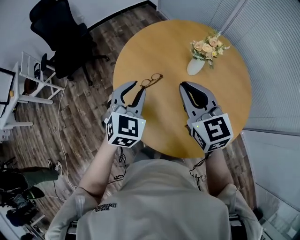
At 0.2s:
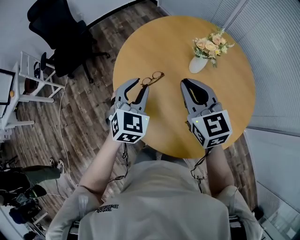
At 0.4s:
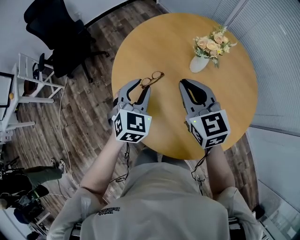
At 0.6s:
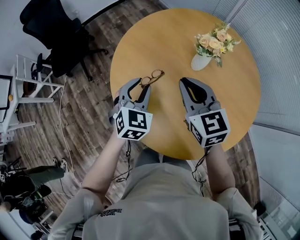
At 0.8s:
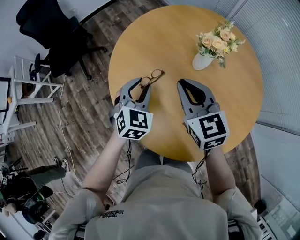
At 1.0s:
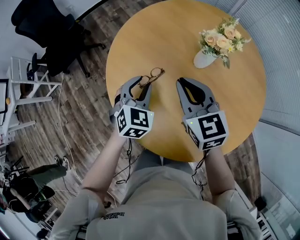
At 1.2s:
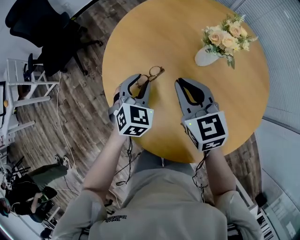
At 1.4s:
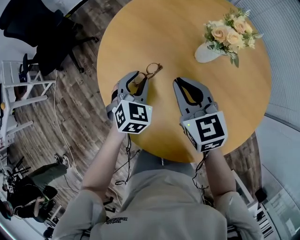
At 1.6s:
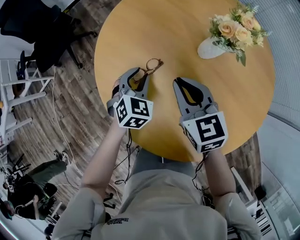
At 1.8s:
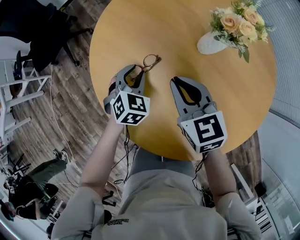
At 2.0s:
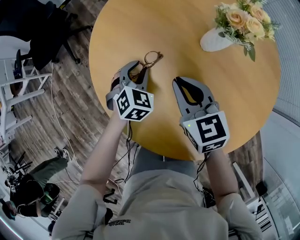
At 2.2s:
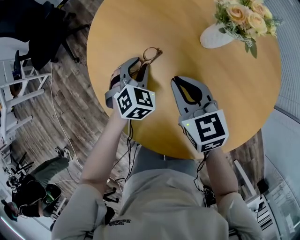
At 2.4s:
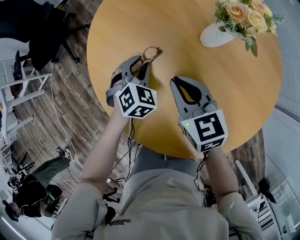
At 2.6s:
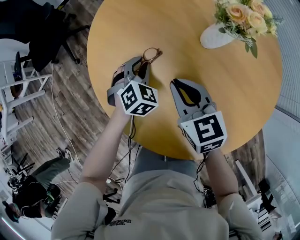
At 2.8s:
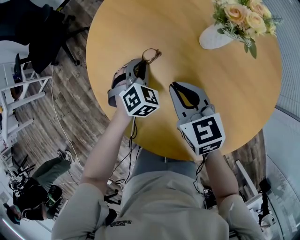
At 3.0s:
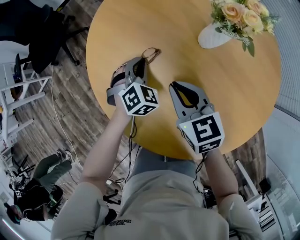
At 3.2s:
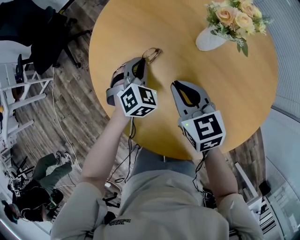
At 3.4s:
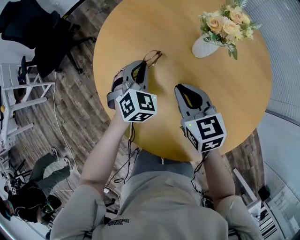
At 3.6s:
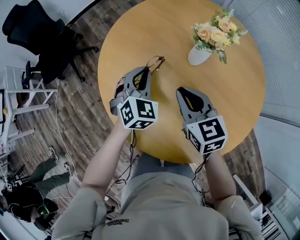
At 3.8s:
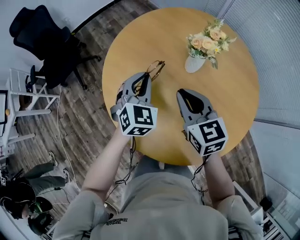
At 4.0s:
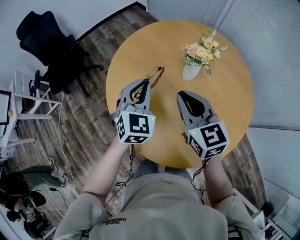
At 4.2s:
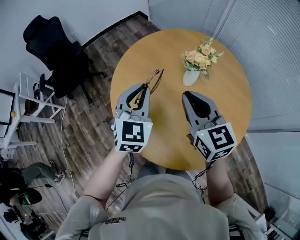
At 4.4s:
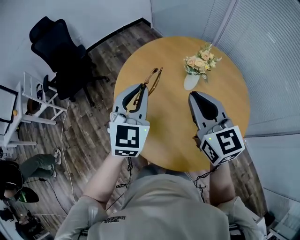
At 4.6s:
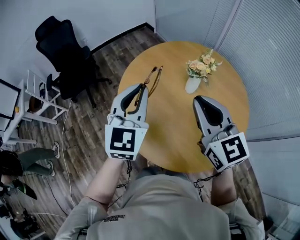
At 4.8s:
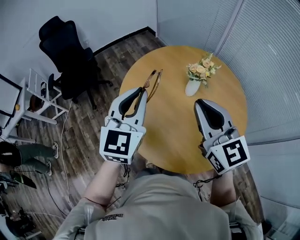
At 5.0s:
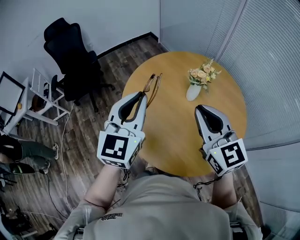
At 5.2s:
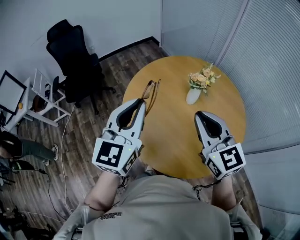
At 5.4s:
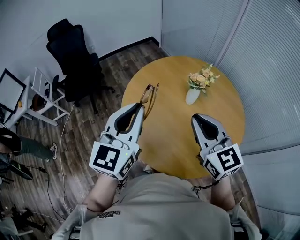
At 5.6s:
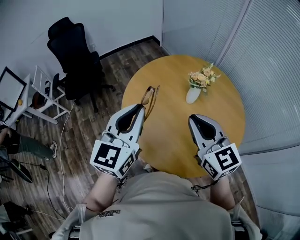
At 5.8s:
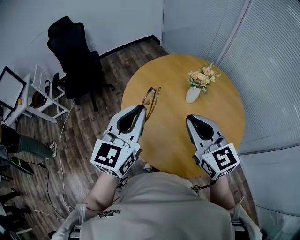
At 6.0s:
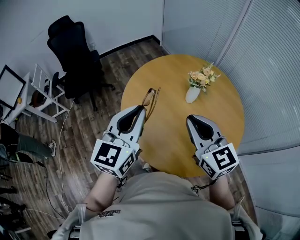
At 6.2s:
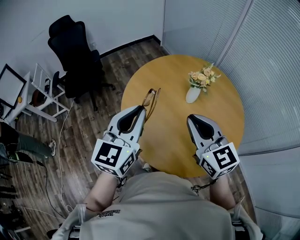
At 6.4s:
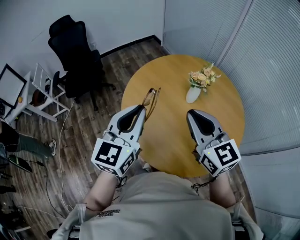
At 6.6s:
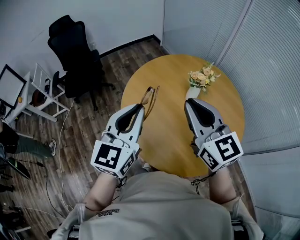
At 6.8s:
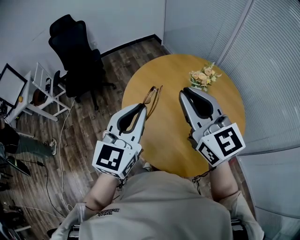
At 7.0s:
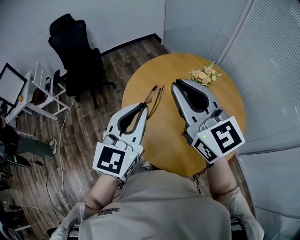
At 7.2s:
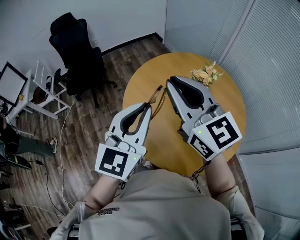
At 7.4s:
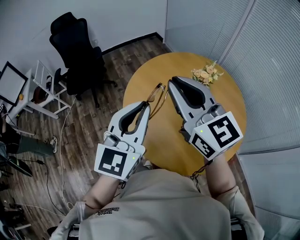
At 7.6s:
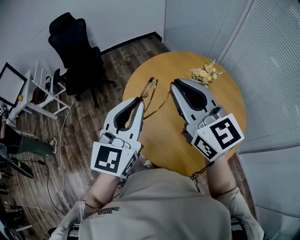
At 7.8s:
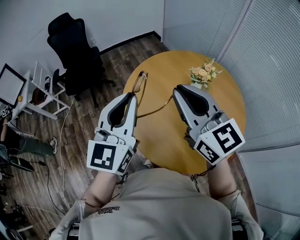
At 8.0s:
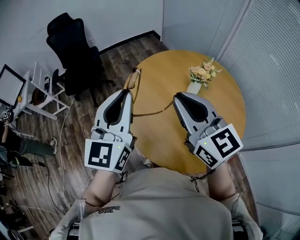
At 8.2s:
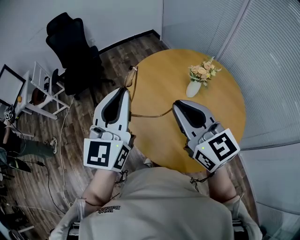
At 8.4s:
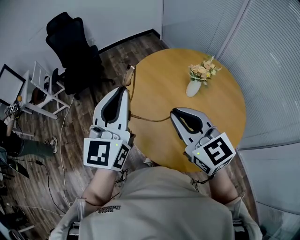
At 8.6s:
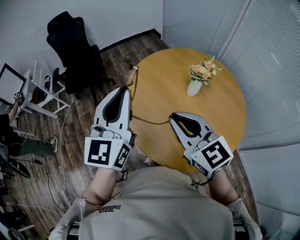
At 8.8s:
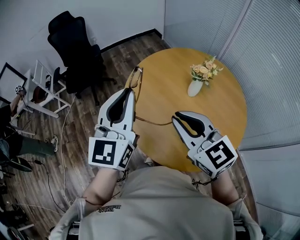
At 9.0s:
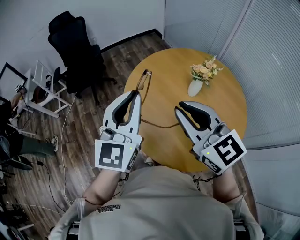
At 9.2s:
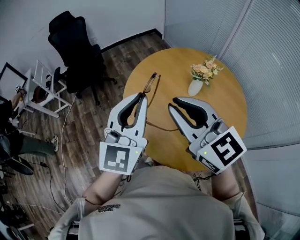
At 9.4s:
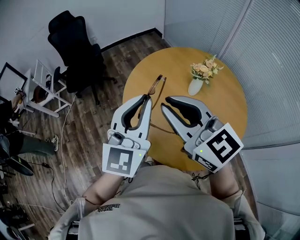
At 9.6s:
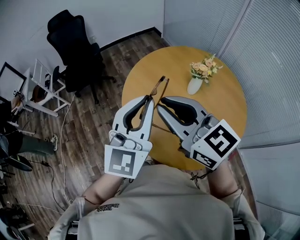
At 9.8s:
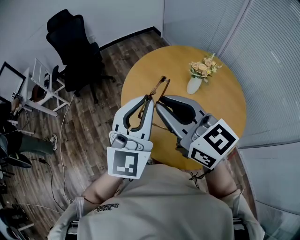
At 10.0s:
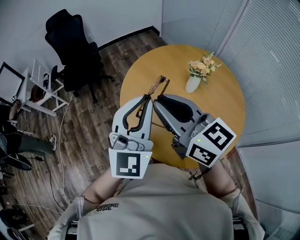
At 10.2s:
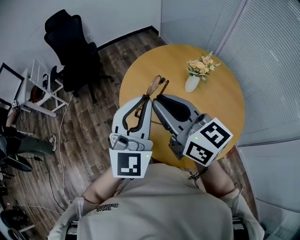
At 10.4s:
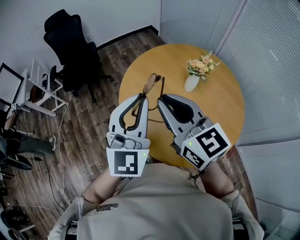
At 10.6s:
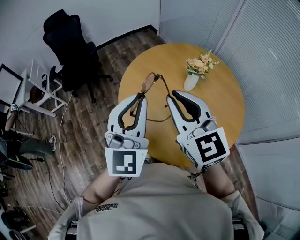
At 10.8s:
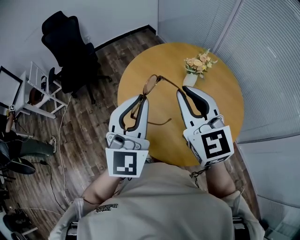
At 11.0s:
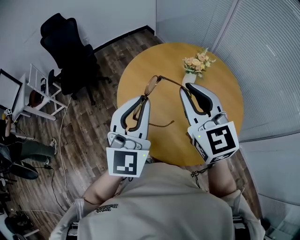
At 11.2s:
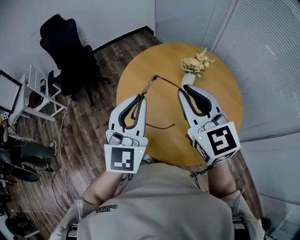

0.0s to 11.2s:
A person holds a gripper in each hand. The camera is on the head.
0.0s to 1.6s: The left gripper travels downward and forward by roughly 25 cm. The right gripper shifts approximately 20 cm downward.
1.6s to 3.2s: The right gripper shifts by approximately 5 cm.
3.2s to 4.8s: Both grippers travel together upward, about 40 cm. The left gripper tilts its fingers roughly 40 degrees upward. The right gripper changes its angle by some 30 degrees.
4.8s to 6.4s: The left gripper moves backward, some 5 cm.
6.4s to 8.0s: Both grippers move upward, some 5 cm.
8.0s to 9.6s: The left gripper travels to the right by roughly 5 cm, while the right gripper goes about 5 cm to the left.
9.6s to 11.2s: The right gripper heads to the right, covering some 10 cm, and turns by about 30 degrees.

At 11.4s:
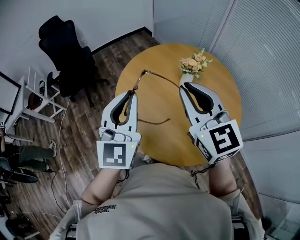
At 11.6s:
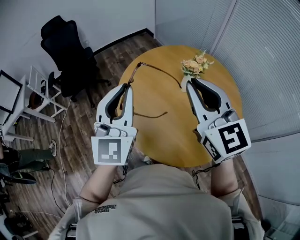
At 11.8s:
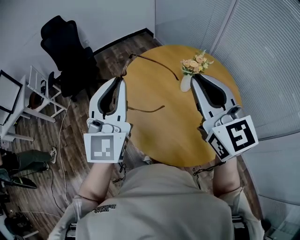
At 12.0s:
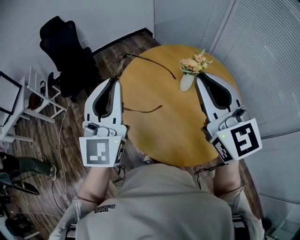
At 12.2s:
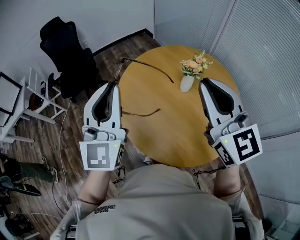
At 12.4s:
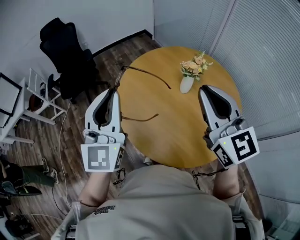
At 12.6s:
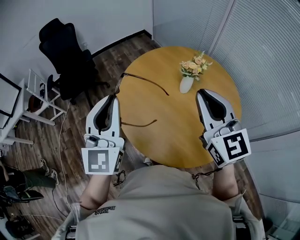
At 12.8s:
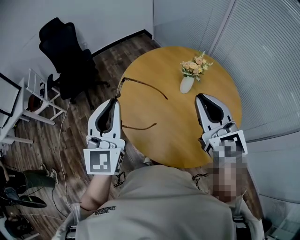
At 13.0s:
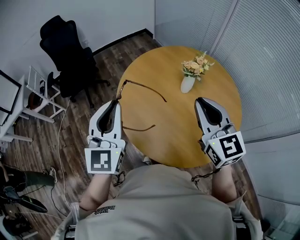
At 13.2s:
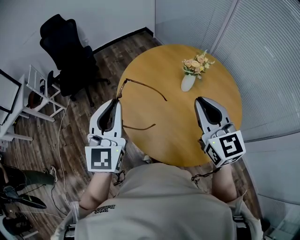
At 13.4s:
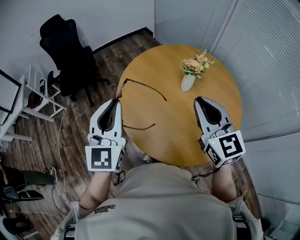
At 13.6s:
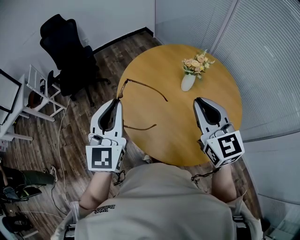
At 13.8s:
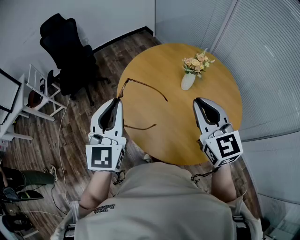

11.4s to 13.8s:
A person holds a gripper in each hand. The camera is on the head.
11.4s to 12.6s: The left gripper travels to the left by about 5 cm.
12.6s to 13.8s: The right gripper is displaced downward by roughly 5 cm.

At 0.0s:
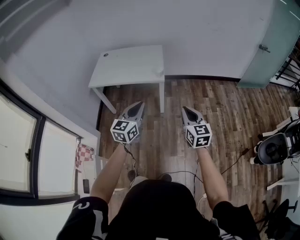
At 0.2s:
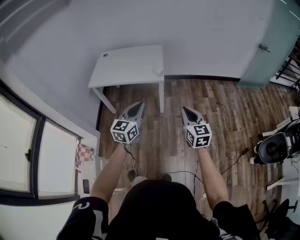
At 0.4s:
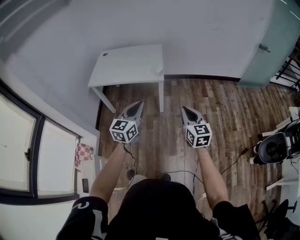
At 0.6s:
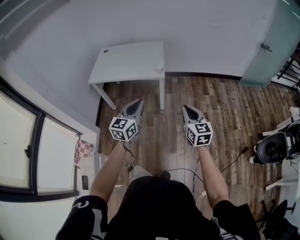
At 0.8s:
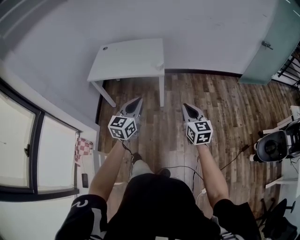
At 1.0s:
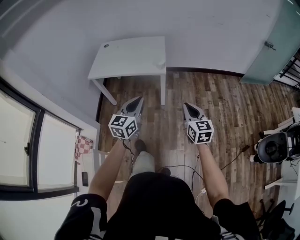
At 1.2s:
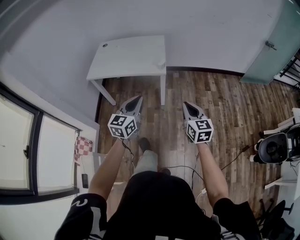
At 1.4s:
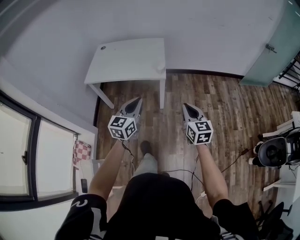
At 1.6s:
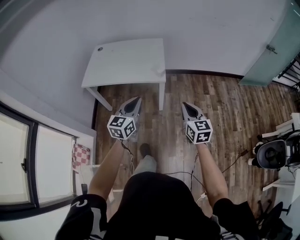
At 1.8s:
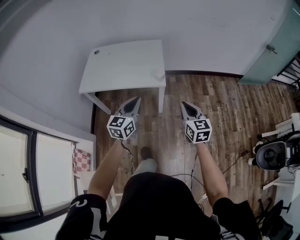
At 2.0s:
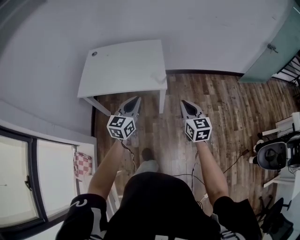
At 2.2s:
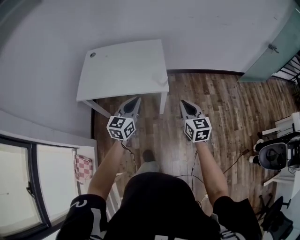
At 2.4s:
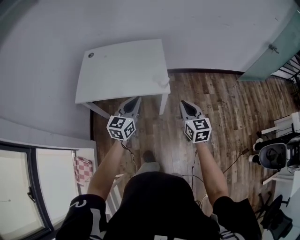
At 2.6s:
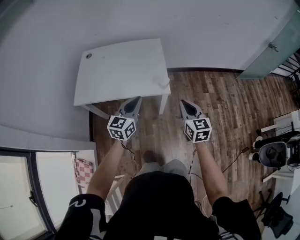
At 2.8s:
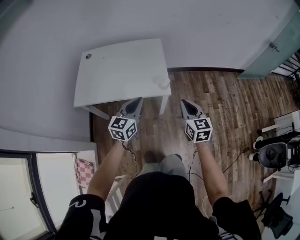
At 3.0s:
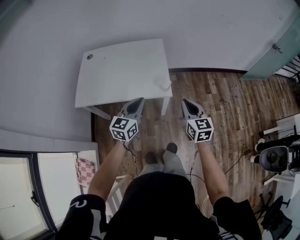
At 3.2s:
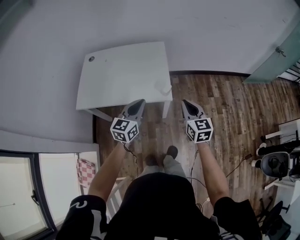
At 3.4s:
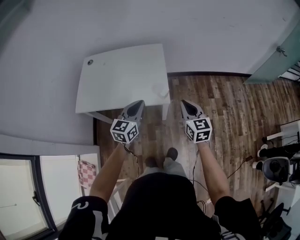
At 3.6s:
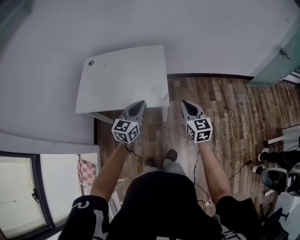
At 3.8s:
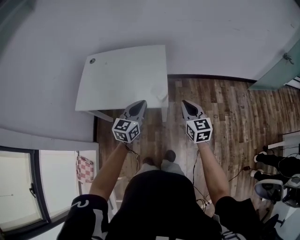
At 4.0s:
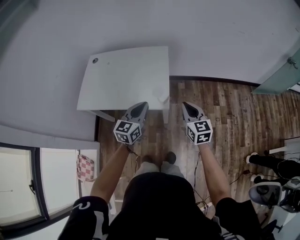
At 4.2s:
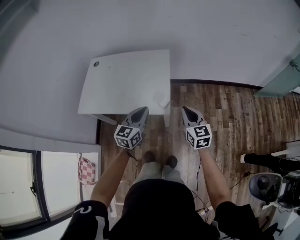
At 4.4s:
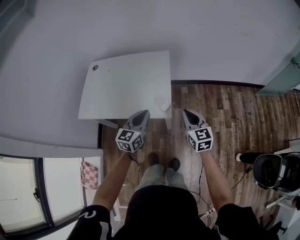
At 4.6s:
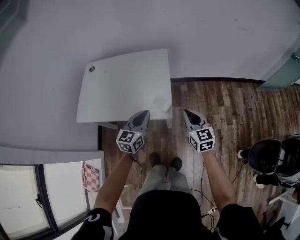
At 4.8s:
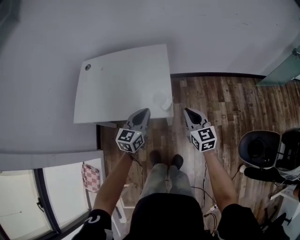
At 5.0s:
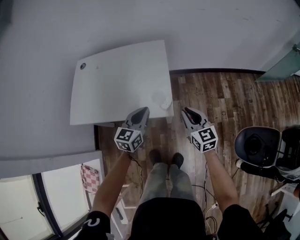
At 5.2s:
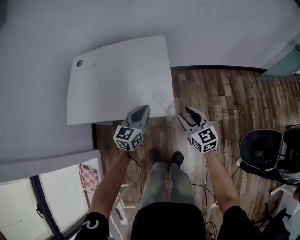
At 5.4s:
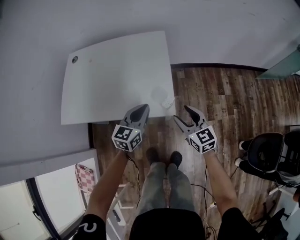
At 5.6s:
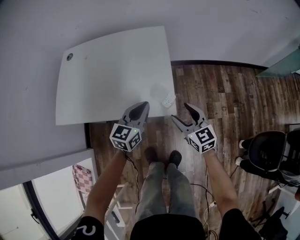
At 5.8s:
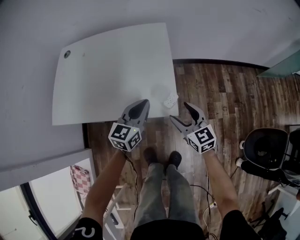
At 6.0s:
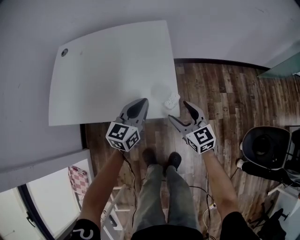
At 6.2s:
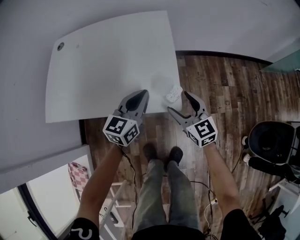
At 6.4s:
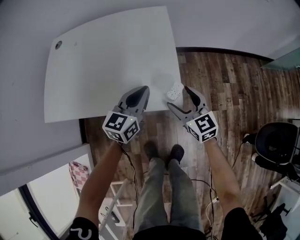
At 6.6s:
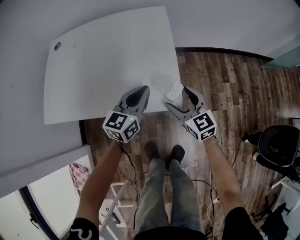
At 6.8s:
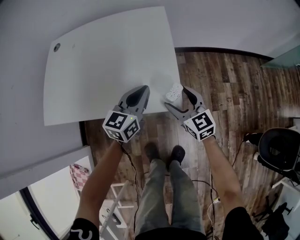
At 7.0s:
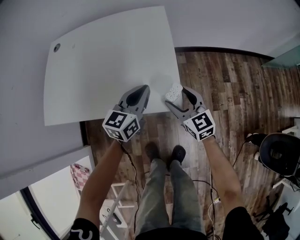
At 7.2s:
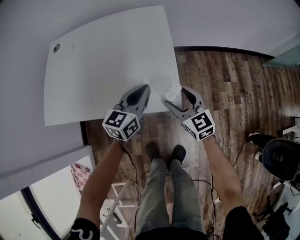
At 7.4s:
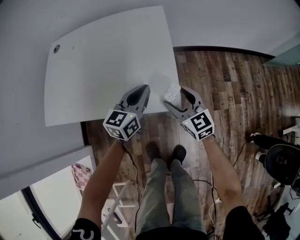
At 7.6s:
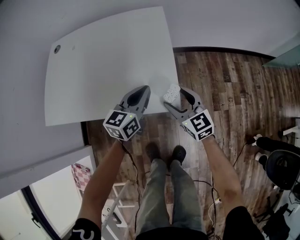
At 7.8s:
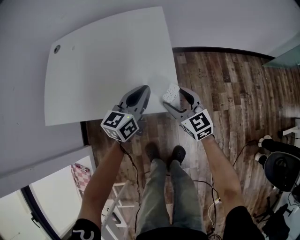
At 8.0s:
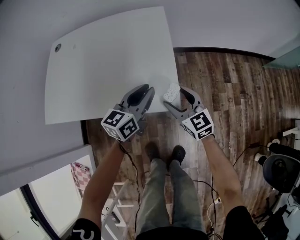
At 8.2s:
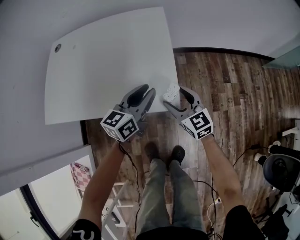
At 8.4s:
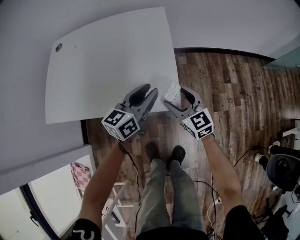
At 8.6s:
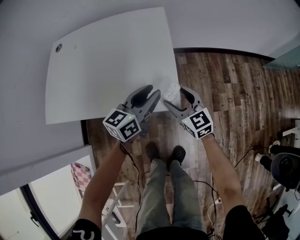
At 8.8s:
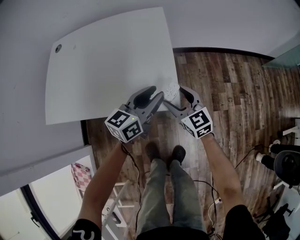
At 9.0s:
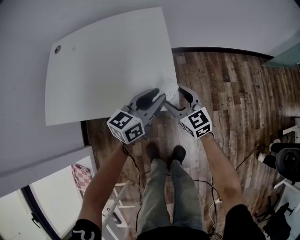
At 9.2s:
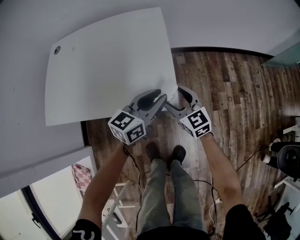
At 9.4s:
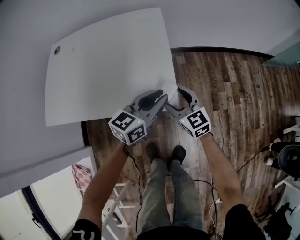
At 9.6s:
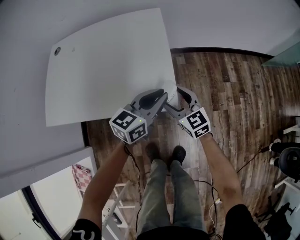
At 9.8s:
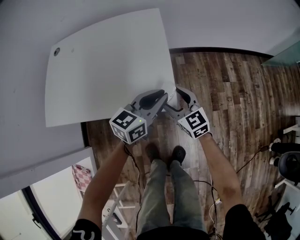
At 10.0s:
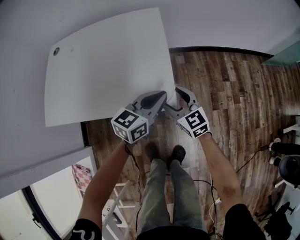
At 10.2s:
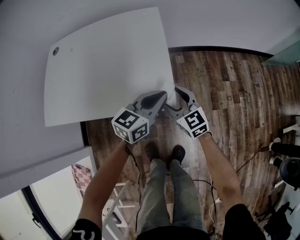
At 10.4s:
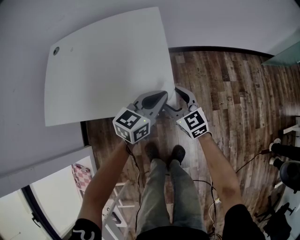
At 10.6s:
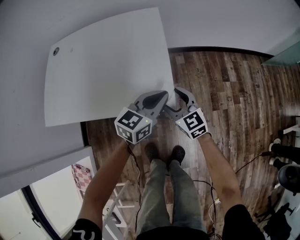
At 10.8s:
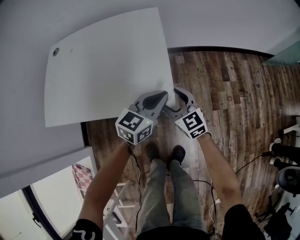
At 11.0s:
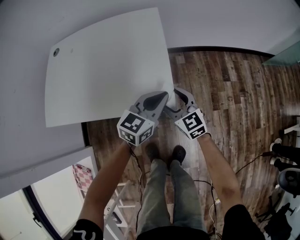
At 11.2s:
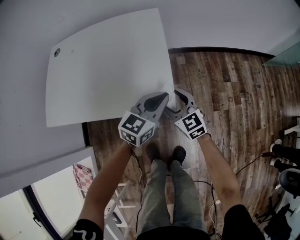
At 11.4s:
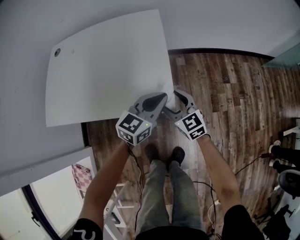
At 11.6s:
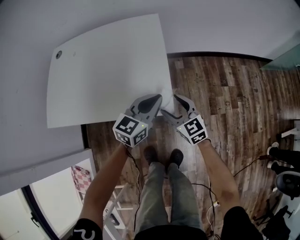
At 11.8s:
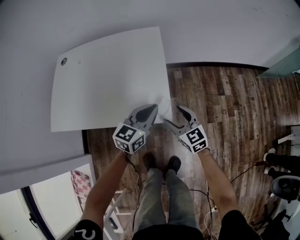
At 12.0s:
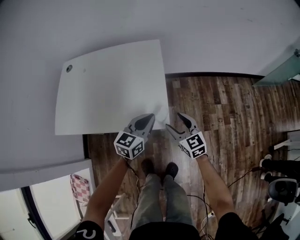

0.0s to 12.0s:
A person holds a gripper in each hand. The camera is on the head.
0.0s to 1.6s: Both grippers move forward, approximately 15 cm.
1.6s to 3.0s: The grippers both shift forward by some 20 cm.
3.0s to 4.4s: Both grippers move forward and to the right, about 15 cm.
4.4s to 6.0s: The left gripper heads downward and forward, covering about 20 cm. The right gripper is displaced downward by about 20 cm, and opens.
6.0s to 7.6s: The right gripper shifts by about 5 cm.
7.6s to 9.0s: The left gripper travels to the right by about 5 cm, and opens.
9.0s to 10.4s: The left gripper closes up.
10.4s to 12.0s: The two grippers go about 5 cm upward.
